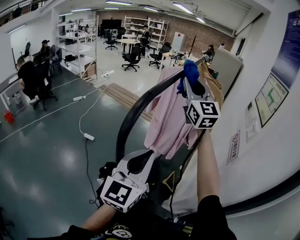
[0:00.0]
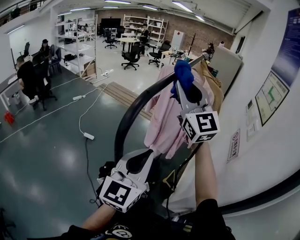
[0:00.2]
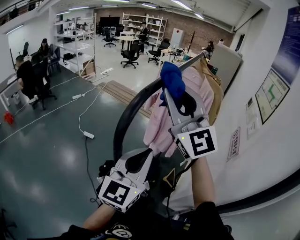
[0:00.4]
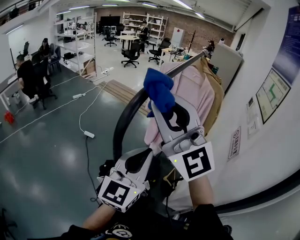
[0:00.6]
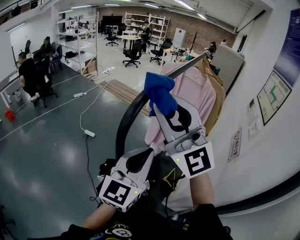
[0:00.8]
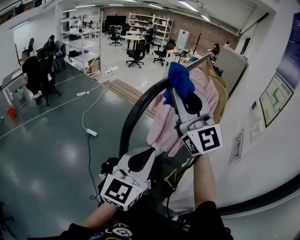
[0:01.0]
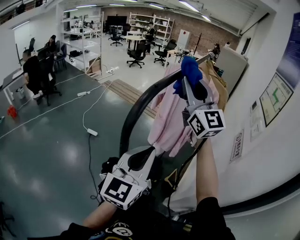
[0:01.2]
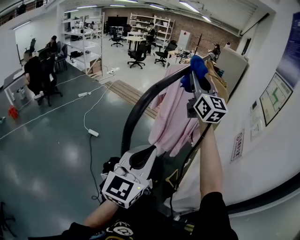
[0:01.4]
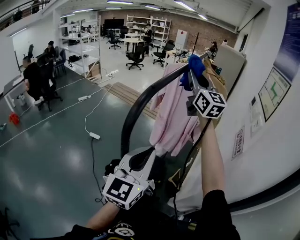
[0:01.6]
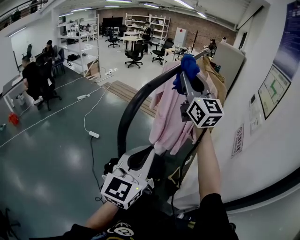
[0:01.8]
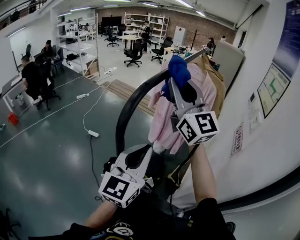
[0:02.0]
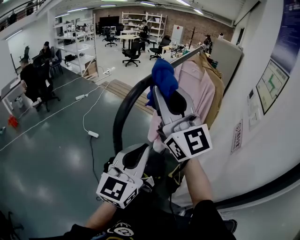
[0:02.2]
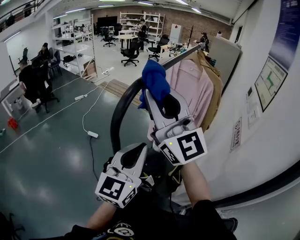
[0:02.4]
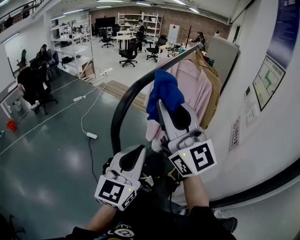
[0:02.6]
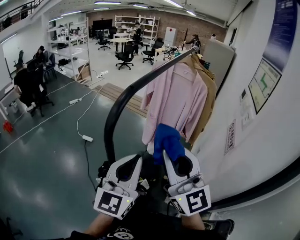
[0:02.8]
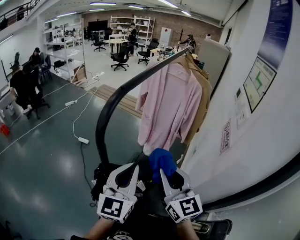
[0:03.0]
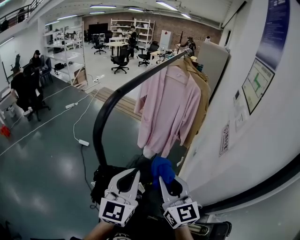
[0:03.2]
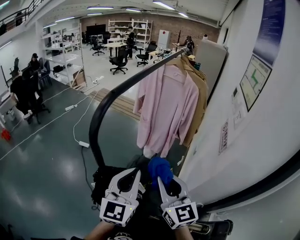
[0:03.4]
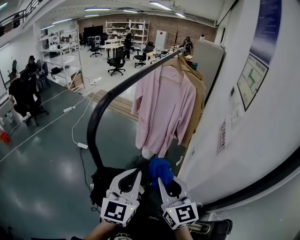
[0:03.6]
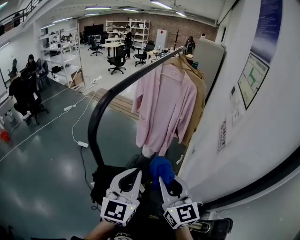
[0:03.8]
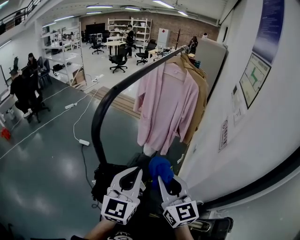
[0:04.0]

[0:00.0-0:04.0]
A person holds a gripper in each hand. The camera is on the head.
0:00.0 to 0:01.4: The right gripper moves some 20 cm backward and comes back.
0:01.4 to 0:02.6: The right gripper shifts some 20 cm backward.
0:02.6 to 0:04.0: The left gripper goes about 5 cm downward, while the right gripper moves downward, backward and to the right, roughly 25 cm, and turns by approximately 40 degrees.

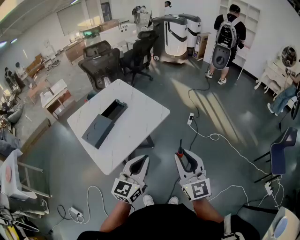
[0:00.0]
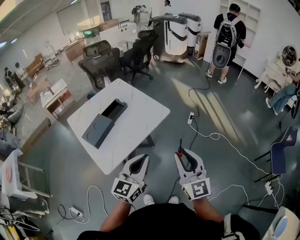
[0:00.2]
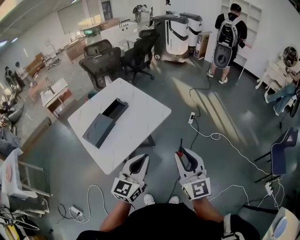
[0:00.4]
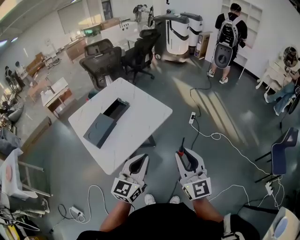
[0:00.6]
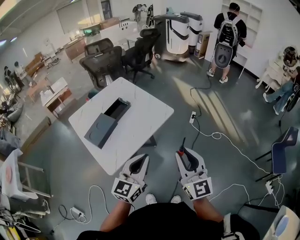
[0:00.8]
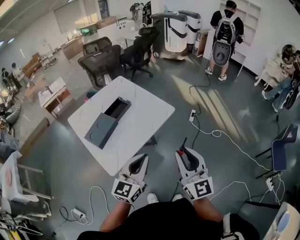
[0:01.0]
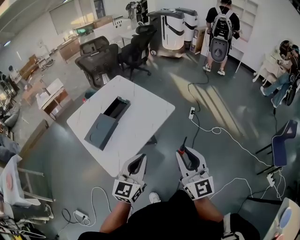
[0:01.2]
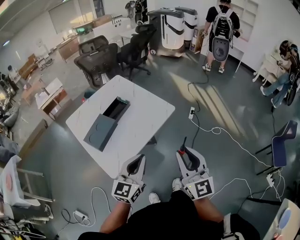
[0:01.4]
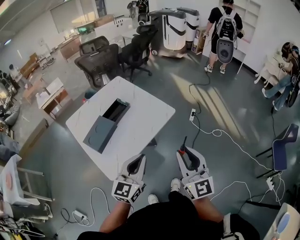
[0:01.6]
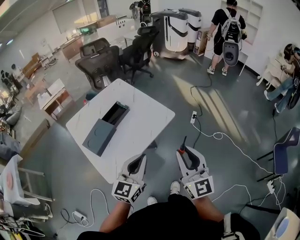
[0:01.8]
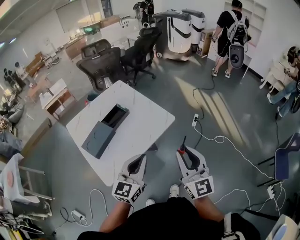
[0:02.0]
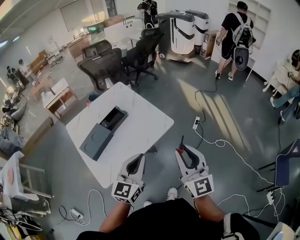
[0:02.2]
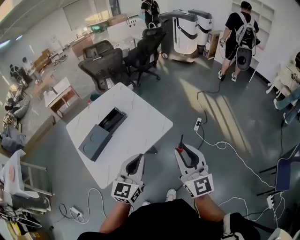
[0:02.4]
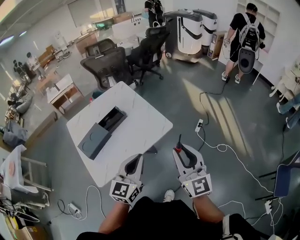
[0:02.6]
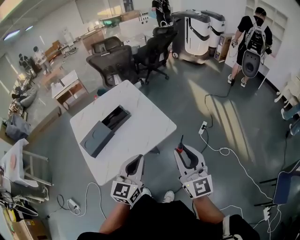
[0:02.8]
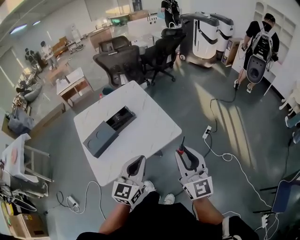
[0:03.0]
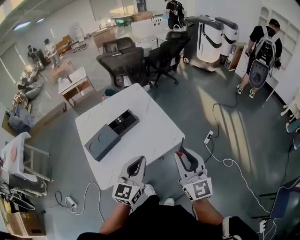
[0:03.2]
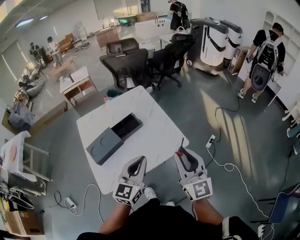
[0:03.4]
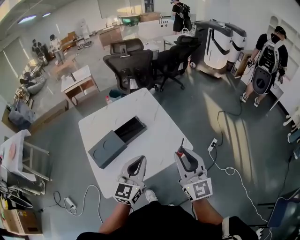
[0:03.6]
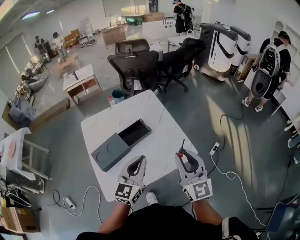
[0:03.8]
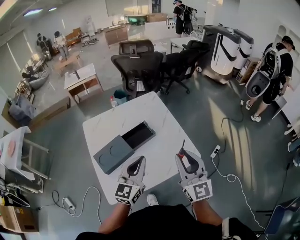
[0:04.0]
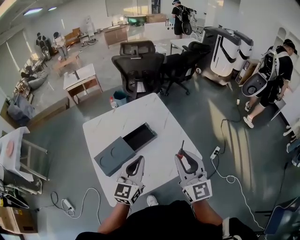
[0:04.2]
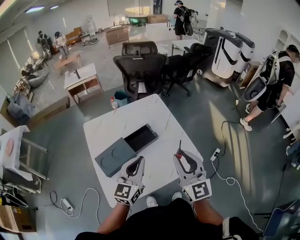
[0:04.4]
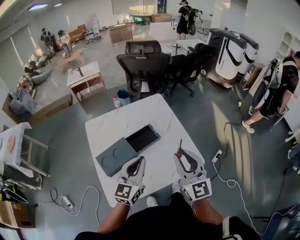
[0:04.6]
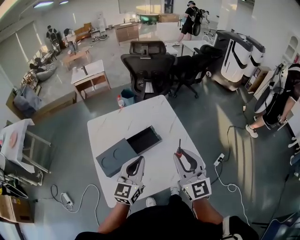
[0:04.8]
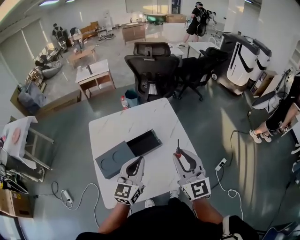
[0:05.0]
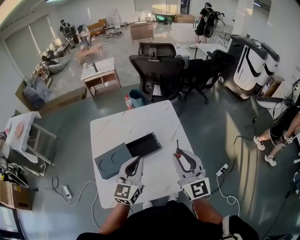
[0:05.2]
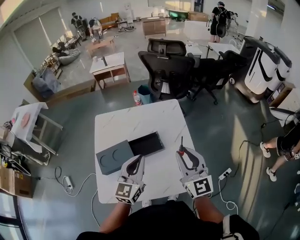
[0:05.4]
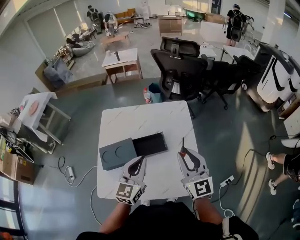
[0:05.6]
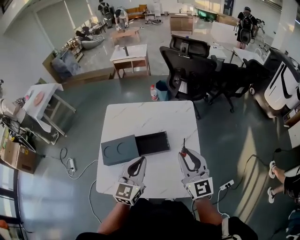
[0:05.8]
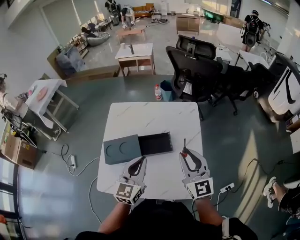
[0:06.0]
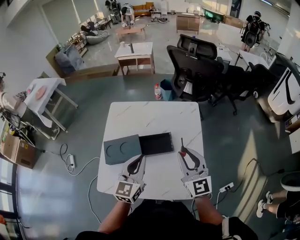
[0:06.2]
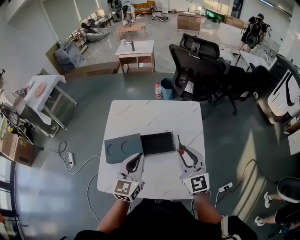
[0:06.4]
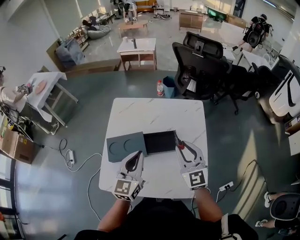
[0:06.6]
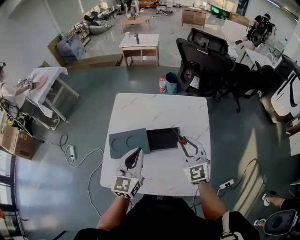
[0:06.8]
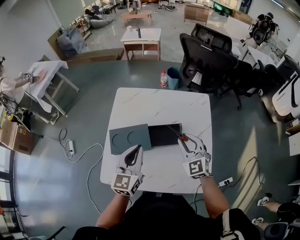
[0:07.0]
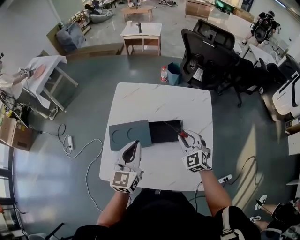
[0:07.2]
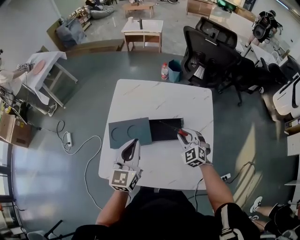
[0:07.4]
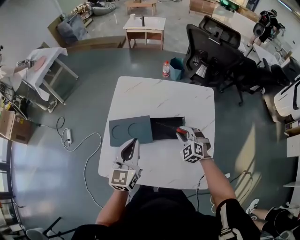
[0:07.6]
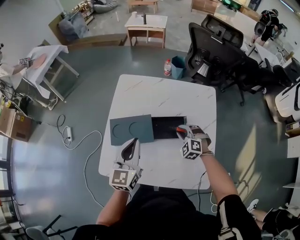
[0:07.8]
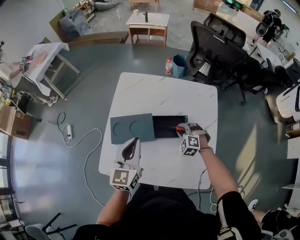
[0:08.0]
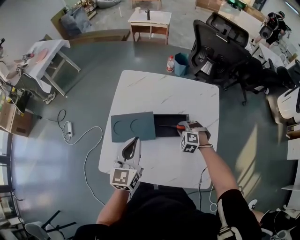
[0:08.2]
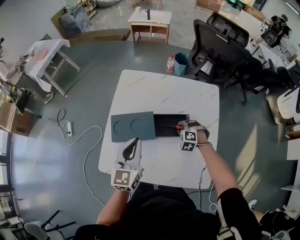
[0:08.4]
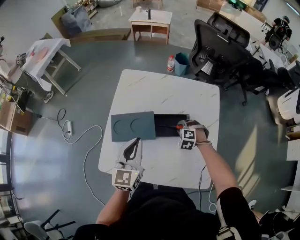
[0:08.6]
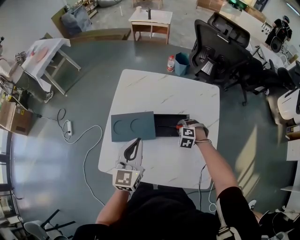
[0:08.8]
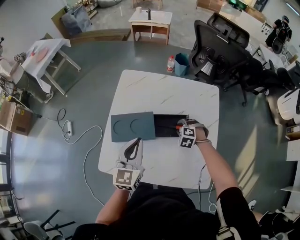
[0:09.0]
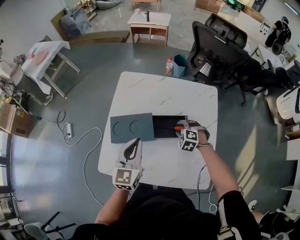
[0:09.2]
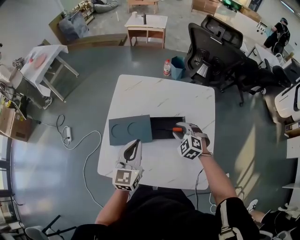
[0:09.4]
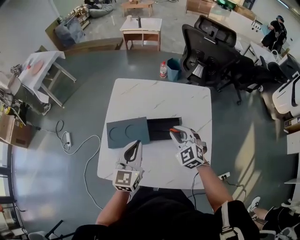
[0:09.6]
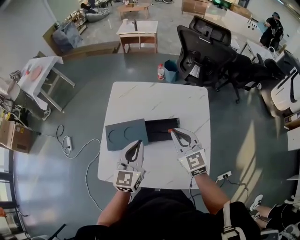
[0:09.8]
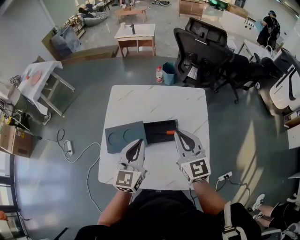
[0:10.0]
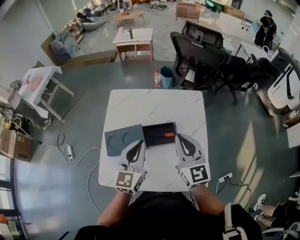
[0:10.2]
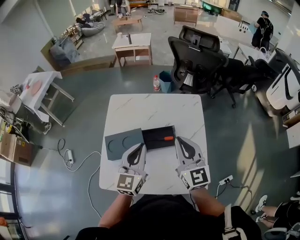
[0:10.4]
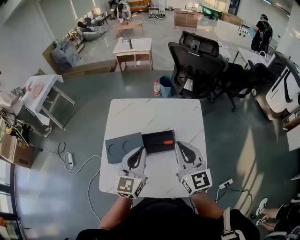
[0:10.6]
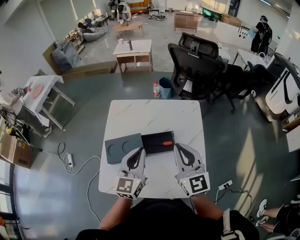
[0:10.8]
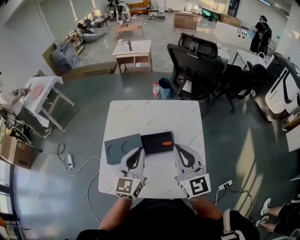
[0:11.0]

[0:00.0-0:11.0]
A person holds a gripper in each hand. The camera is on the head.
0:00.0 to 0:01.6: The left gripper is displaced to the left by about 5 cm. Meanwhile the right gripper moves about 5 cm.
0:01.6 to 0:03.2: The left gripper is displaced forward and to the right by about 15 cm. The right gripper is displaced forward by roughly 20 cm.
0:03.2 to 0:04.8: The grippers both shift forward and to the left by approximately 20 cm.
0:04.8 to 0:06.2: The left gripper is displaced forward by about 5 cm, and changes its angle by some 30 degrees; the right gripper travels forward and downward by about 15 cm, and rotates some 20 degrees.
0:06.2 to 0:07.8: The left gripper goes some 10 cm to the left. The right gripper shifts approximately 25 cm downward and forward, and tips its fingers downward by some 50 degrees.
0:09.4 to 0:11.0: The right gripper goes about 25 cm upward, tips its fingers upward by roughly 50 degrees, and closes its fingers. The left gripper shifts about 10 cm upward and to the right.

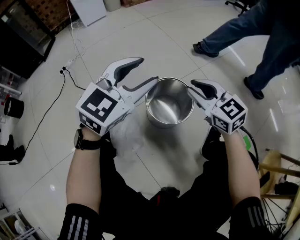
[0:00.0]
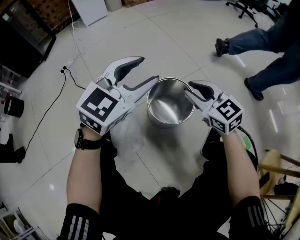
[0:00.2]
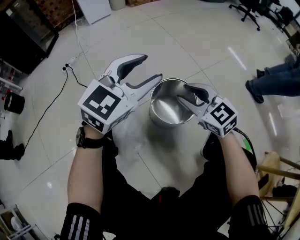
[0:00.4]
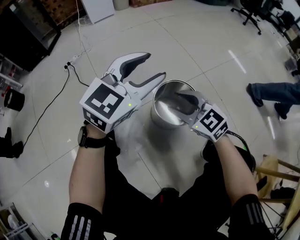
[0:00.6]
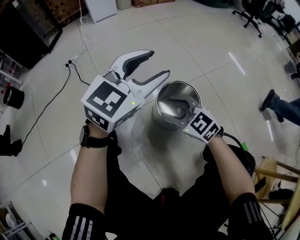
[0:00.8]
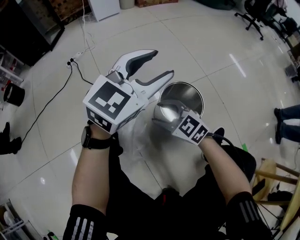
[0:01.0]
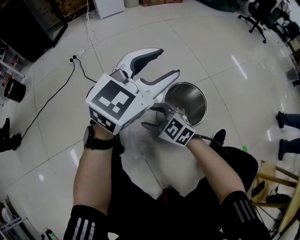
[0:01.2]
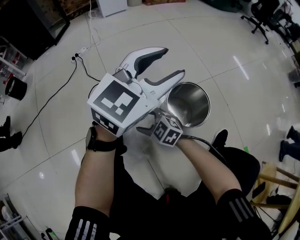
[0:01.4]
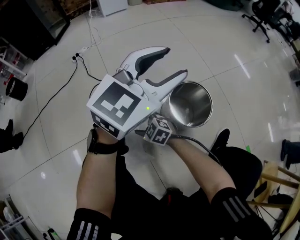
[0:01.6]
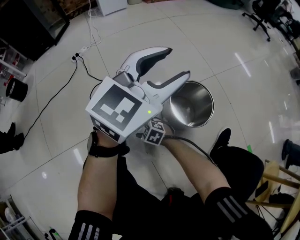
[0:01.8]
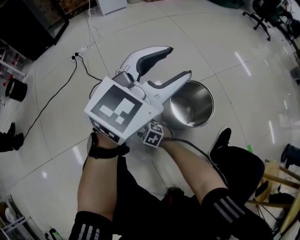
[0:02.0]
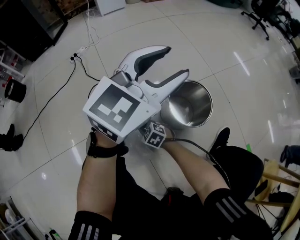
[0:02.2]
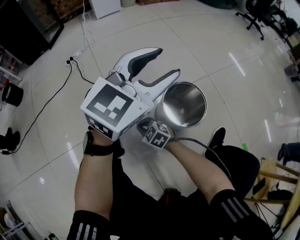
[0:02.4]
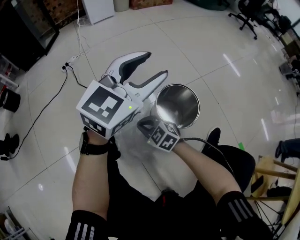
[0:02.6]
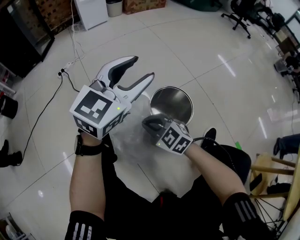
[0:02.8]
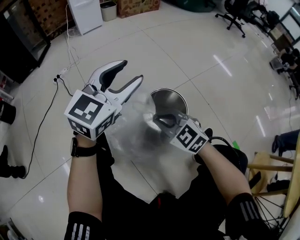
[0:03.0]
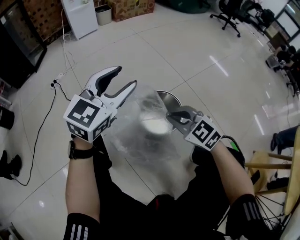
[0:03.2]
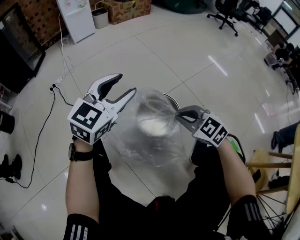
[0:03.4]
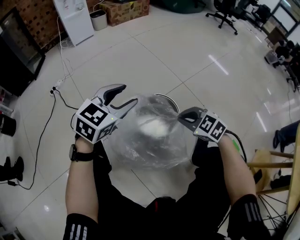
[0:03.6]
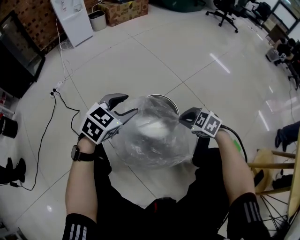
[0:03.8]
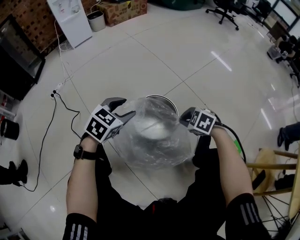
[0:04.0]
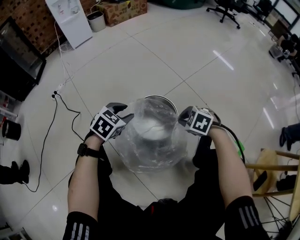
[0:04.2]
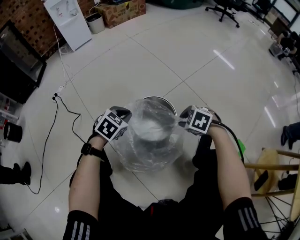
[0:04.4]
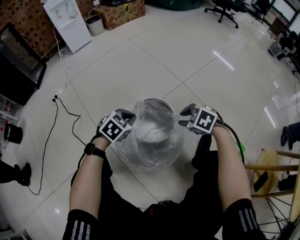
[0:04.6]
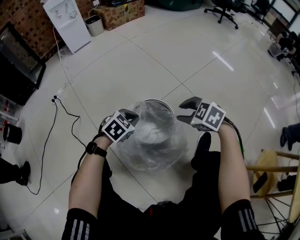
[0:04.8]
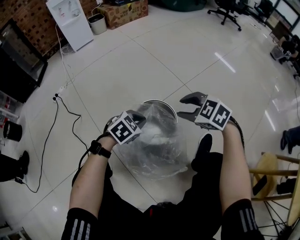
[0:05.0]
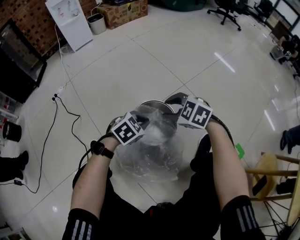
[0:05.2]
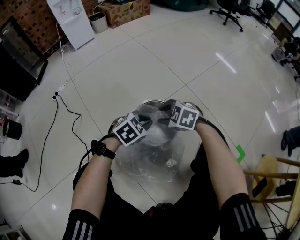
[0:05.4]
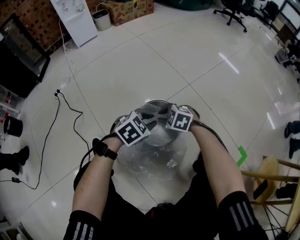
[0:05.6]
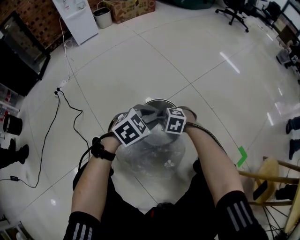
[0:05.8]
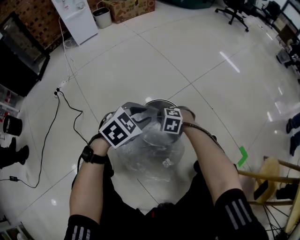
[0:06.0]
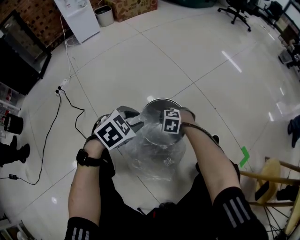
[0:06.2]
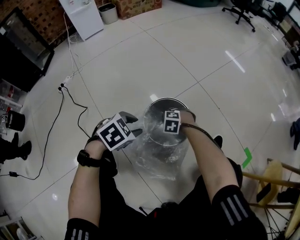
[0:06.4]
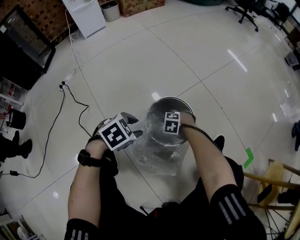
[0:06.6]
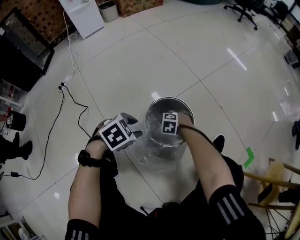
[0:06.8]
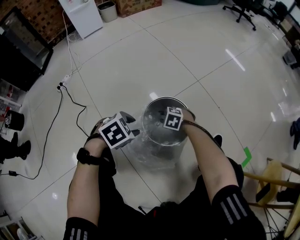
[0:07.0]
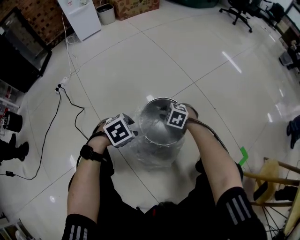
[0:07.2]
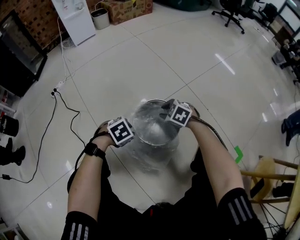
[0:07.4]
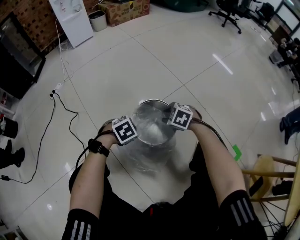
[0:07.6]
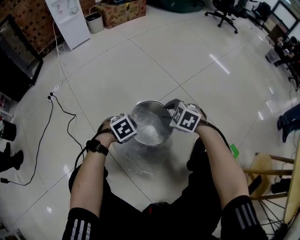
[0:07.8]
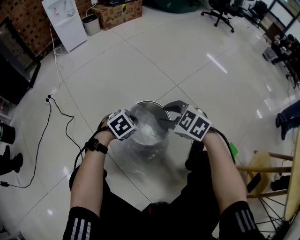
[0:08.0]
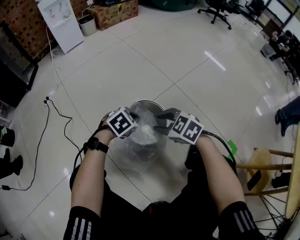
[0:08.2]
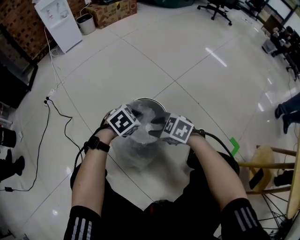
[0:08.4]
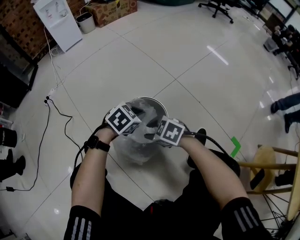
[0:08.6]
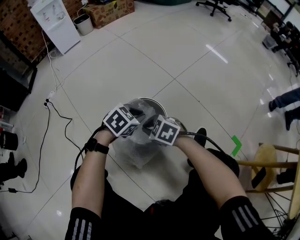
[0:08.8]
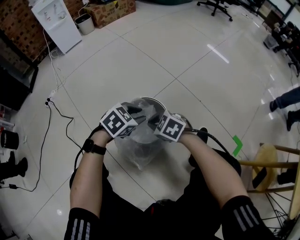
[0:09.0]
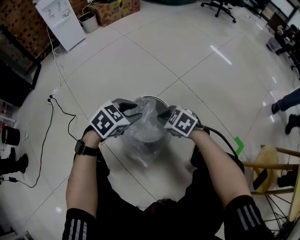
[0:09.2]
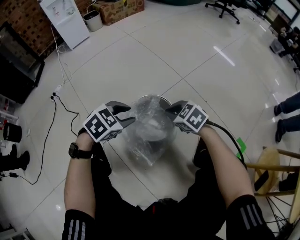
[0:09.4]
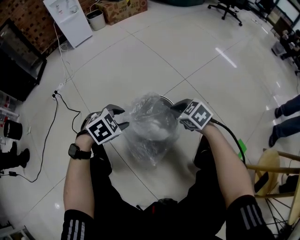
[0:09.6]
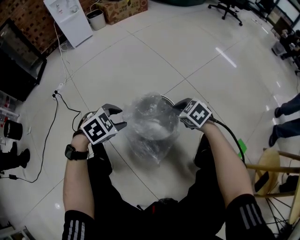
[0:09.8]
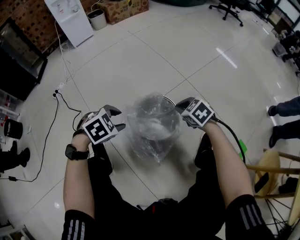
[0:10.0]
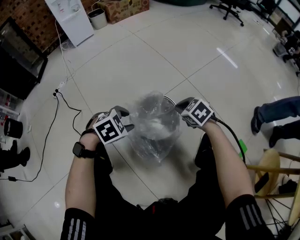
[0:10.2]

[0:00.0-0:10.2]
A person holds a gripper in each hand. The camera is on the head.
0:00.0 to 0:01.4: The right gripper shifts some 35 cm to the left and downward, swivels some 40 degrees, and opens its fingers, while the left gripper heads to the left and upward, covering about 10 cm.
0:01.4 to 0:03.0: The right gripper heads to the right and upward, covering roughly 20 cm, and closes up.
0:03.0 to 0:04.4: The right gripper travels to the right and downward by about 25 cm, and angles its fingers downward, by approximately 40 degrees. The left gripper goes about 25 cm downward, tilts its fingers roughly 50 degrees downward, and closes its fingers.
0:04.4 to 0:05.8: The left gripper moves approximately 10 cm. The right gripper moves roughly 10 cm upward and comes back.
0:05.8 to 0:07.2: The right gripper reaches roughly 15 cm downward, then returns, while the left gripper ends up approximately 15 cm from where it was, and rotates approximately 20 degrees.
0:07.2 to 0:08.8: The left gripper ends up roughly 15 cm from where it was, and closes its fingers.
0:08.8 to 0:10.2: The left gripper shifts by approximately 10 cm, and opens up; the right gripper moves approximately 10 cm.
